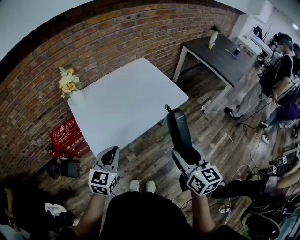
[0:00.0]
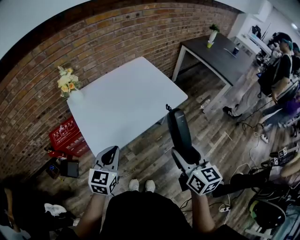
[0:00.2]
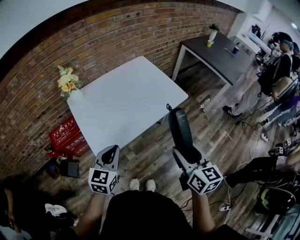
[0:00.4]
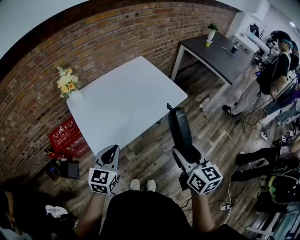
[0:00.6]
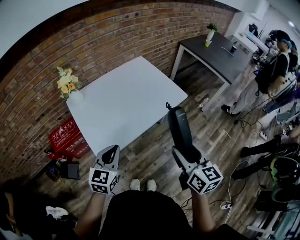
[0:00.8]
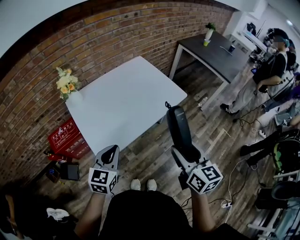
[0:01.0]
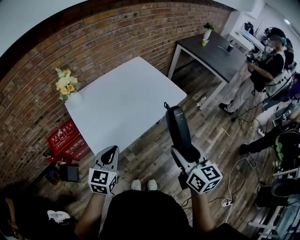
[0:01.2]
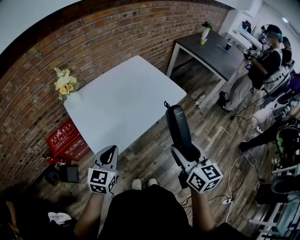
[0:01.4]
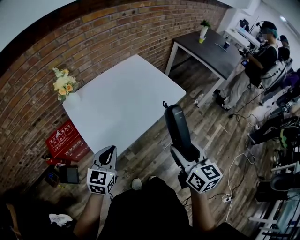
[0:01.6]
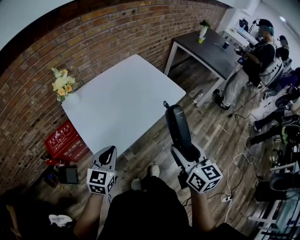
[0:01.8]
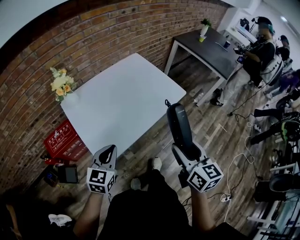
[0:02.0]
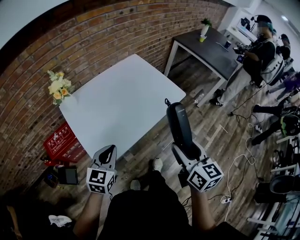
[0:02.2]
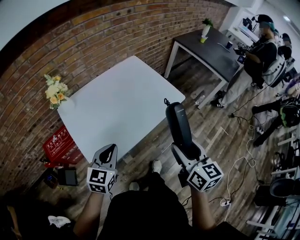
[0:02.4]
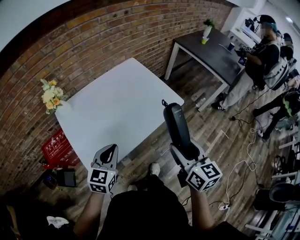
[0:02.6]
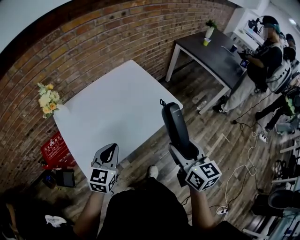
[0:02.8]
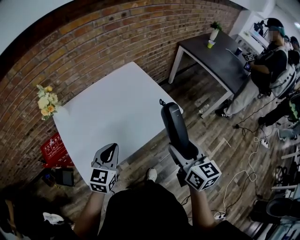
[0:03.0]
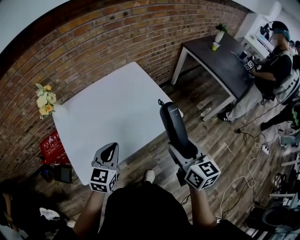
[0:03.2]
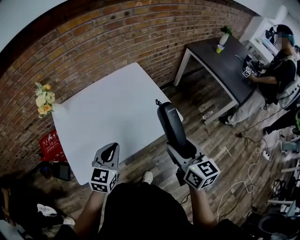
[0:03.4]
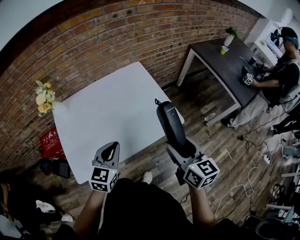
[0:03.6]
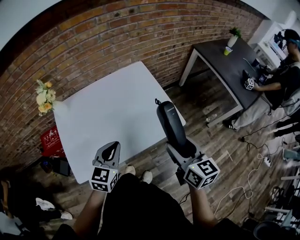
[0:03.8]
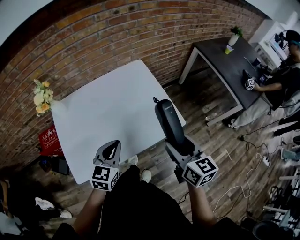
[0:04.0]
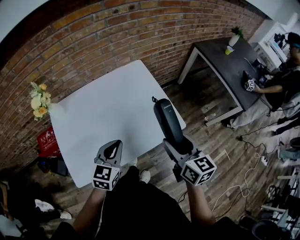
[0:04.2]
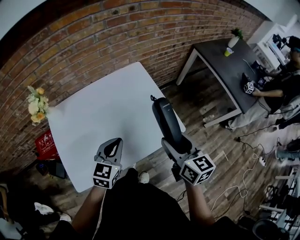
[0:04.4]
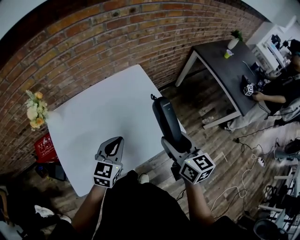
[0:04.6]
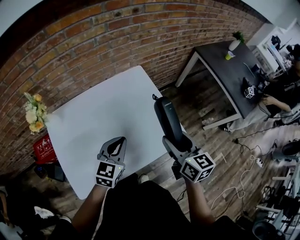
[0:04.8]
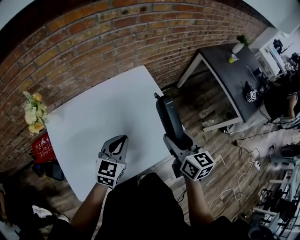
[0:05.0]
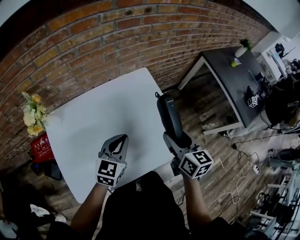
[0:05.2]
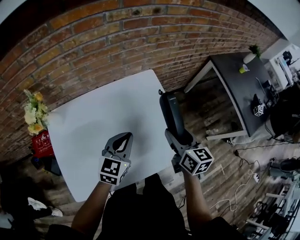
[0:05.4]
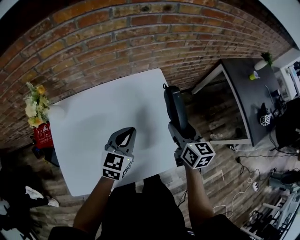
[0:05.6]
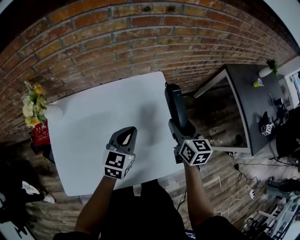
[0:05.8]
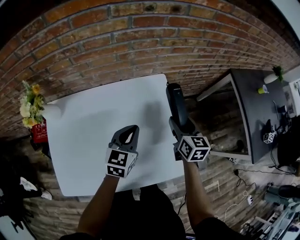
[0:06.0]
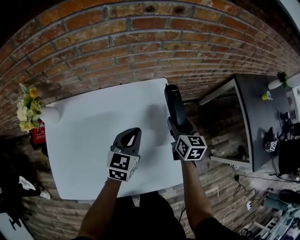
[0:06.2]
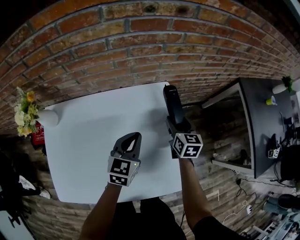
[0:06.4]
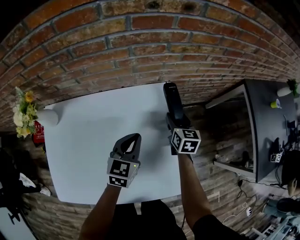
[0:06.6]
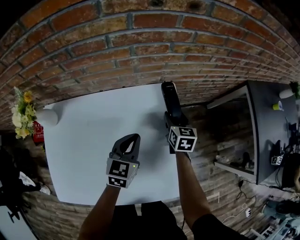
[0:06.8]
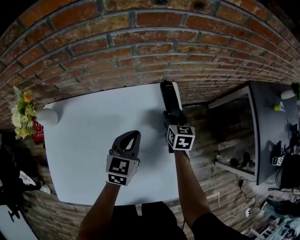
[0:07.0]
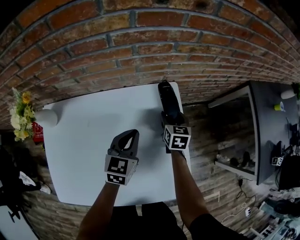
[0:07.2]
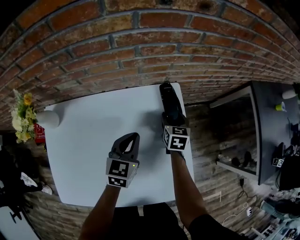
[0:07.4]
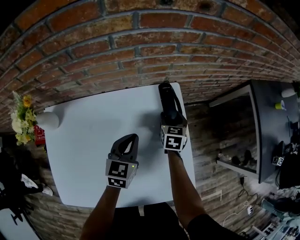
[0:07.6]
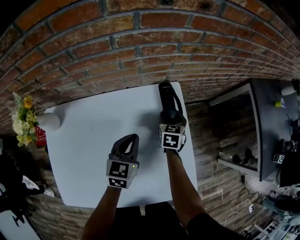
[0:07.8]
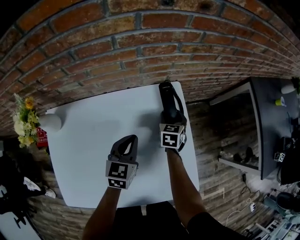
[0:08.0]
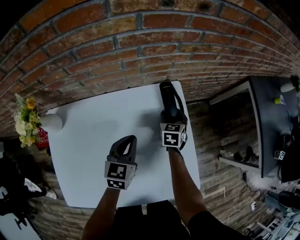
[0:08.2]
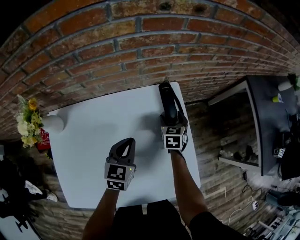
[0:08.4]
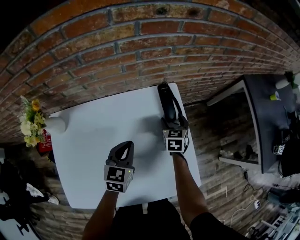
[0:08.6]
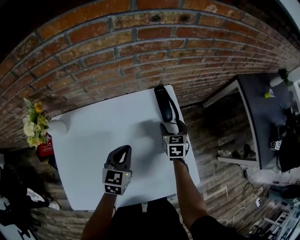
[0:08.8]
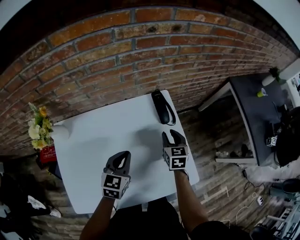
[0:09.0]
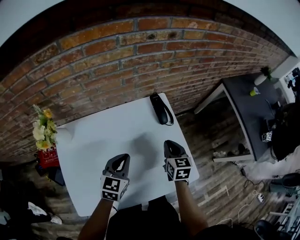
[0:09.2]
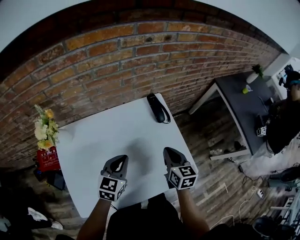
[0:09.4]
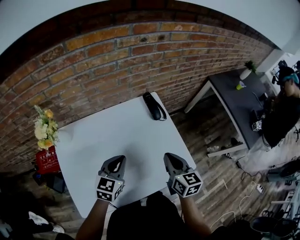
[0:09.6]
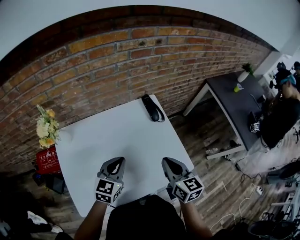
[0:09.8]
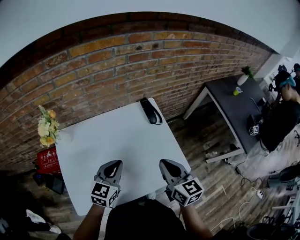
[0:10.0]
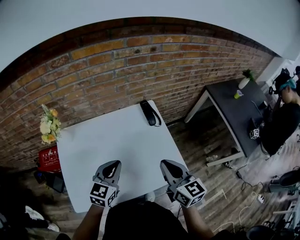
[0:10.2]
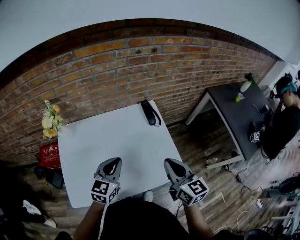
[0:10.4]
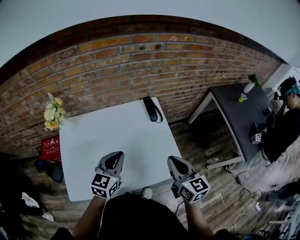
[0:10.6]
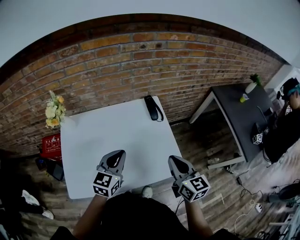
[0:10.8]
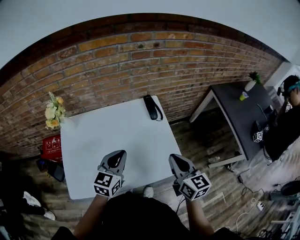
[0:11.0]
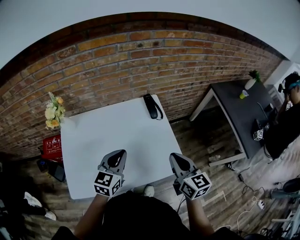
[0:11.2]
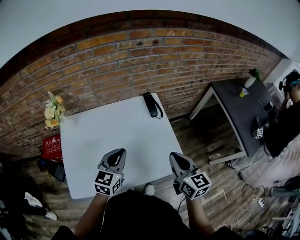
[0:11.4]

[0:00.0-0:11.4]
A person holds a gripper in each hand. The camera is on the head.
0:00.0 to 0:01.4: The grippers make only small movements.
0:01.4 to 0:02.8: The grippers both shift forward and to the right by roughly 15 cm.
0:02.8 to 0:04.2: The right gripper travels forward by some 15 cm; the left gripper shifts roughly 15 cm forward and to the right.
0:04.2 to 0:05.6: The two grippers go about 20 cm forward.
0:05.6 to 0:07.2: The left gripper travels forward and downward by approximately 15 cm. The right gripper moves forward and downward, about 30 cm.
0:07.2 to 0:08.6: The left gripper travels backward by about 5 cm.
0:08.6 to 0:10.0: The left gripper goes roughly 20 cm backward and upward. Meanwhile the right gripper heads backward and upward, covering about 40 cm, turns by about 30 degrees, and closes.
0:10.0 to 0:11.4: The right gripper heads to the right, covering some 10 cm. Meanwhile the left gripper moves some 5 cm.

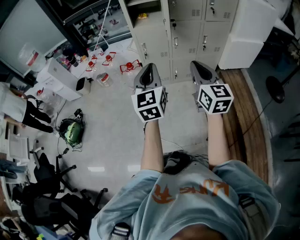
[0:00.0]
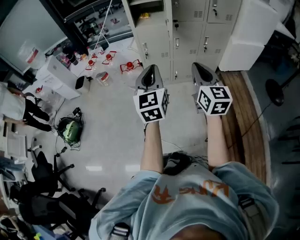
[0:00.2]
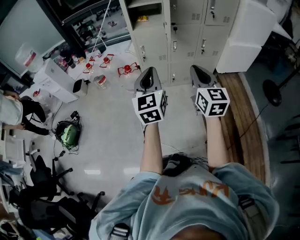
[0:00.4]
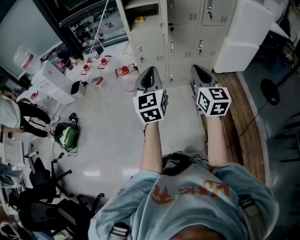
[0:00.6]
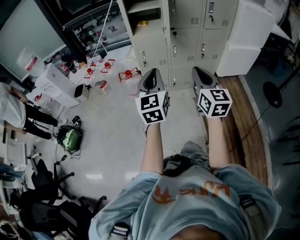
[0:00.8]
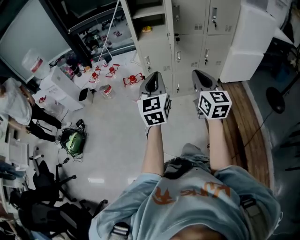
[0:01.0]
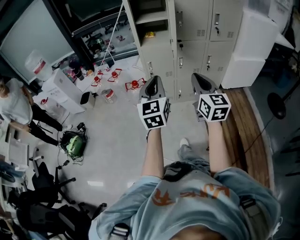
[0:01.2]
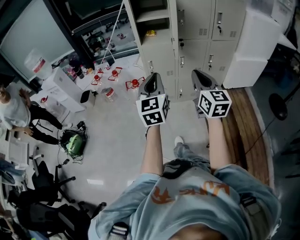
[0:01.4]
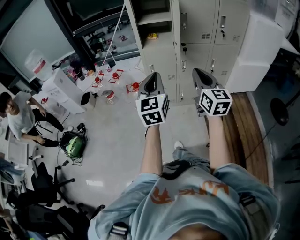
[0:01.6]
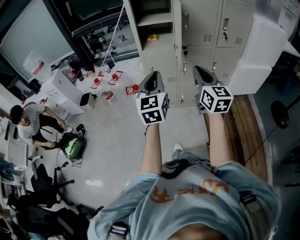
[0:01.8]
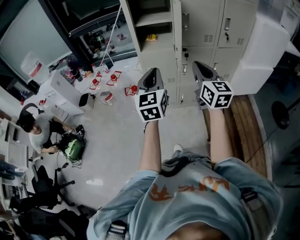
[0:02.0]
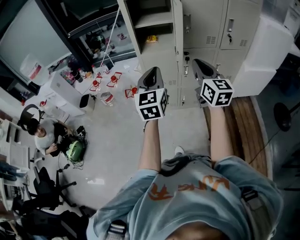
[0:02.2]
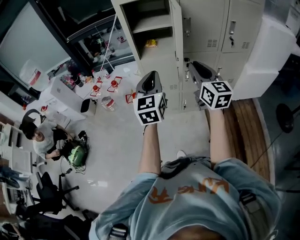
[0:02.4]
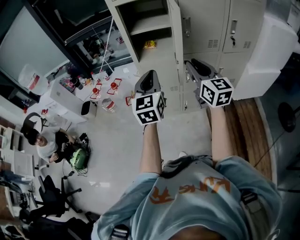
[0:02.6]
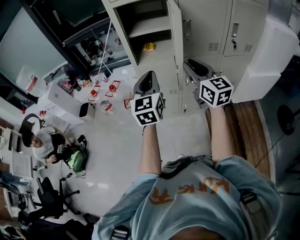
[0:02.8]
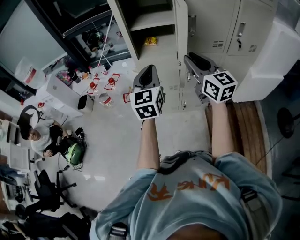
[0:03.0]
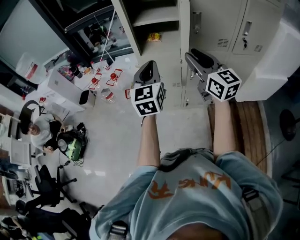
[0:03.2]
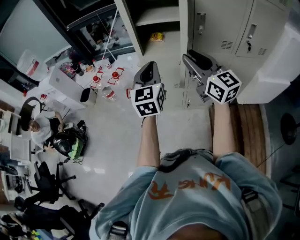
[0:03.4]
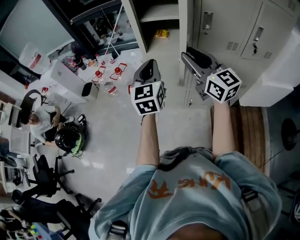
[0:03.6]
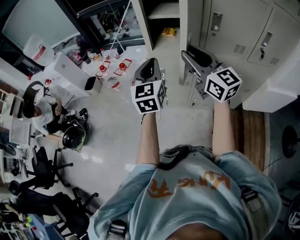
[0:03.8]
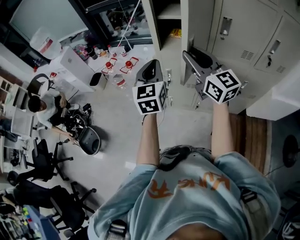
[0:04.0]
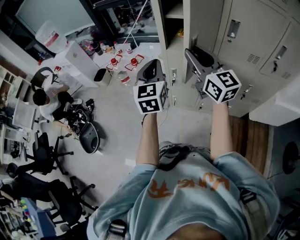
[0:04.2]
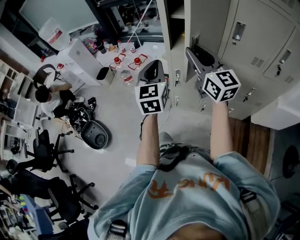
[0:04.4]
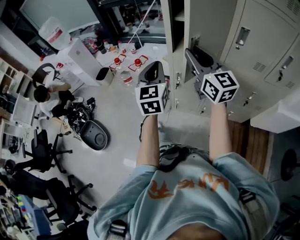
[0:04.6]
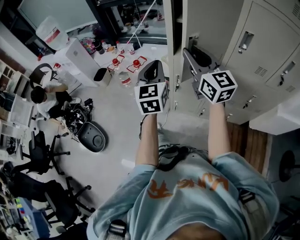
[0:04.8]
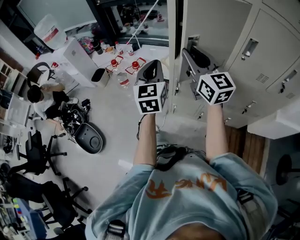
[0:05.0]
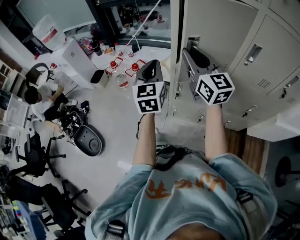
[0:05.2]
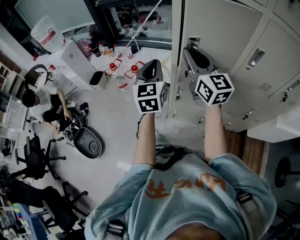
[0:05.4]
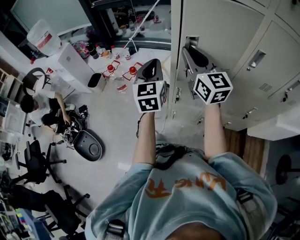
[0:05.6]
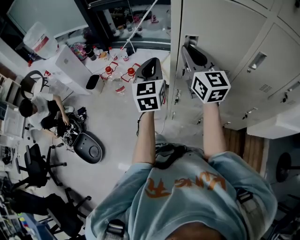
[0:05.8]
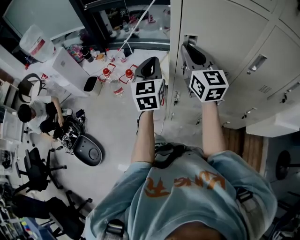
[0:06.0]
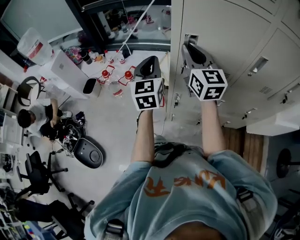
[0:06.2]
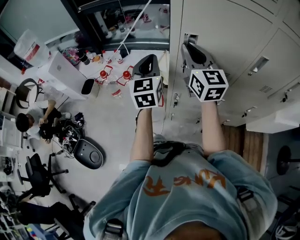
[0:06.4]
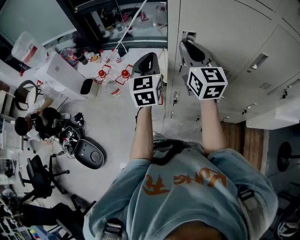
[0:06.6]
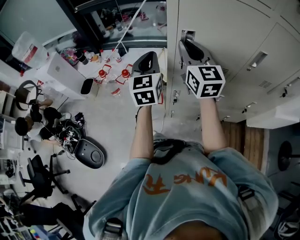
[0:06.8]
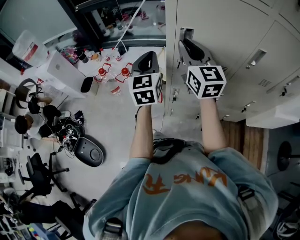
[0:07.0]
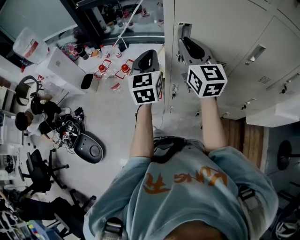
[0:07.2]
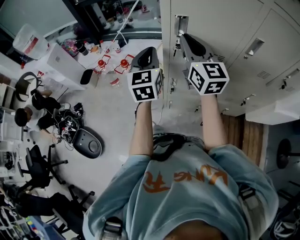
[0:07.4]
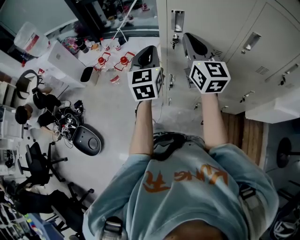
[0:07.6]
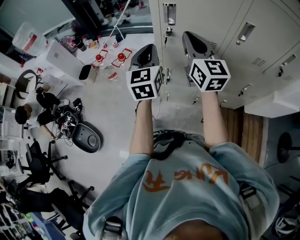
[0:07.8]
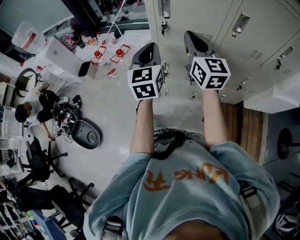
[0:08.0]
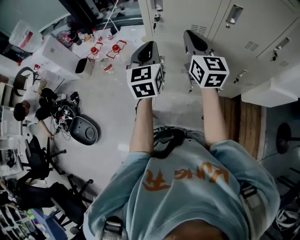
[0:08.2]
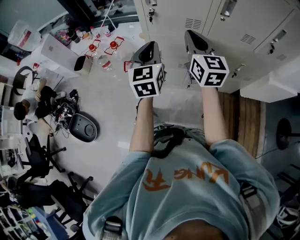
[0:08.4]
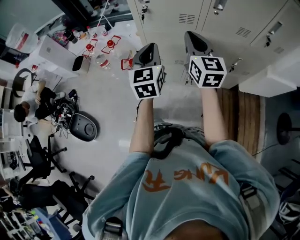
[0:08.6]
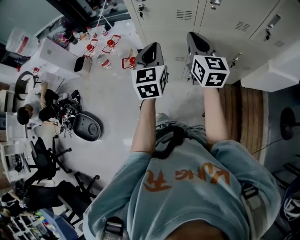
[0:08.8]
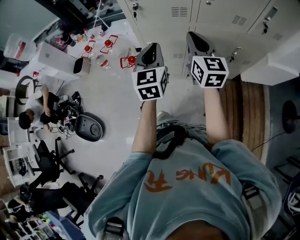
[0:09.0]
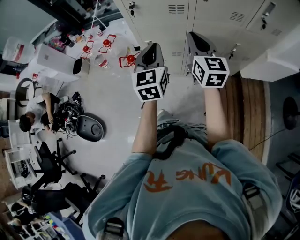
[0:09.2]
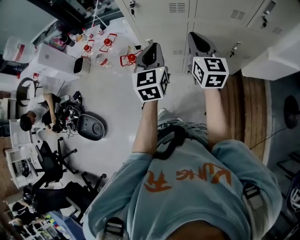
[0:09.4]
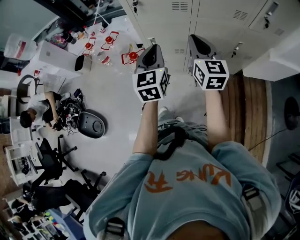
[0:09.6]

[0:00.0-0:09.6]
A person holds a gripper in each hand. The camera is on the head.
0:00.0 to 0:01.6: The grippers both shift forward by about 10 cm.
0:01.6 to 0:03.2: The grippers both shift forward by about 25 cm. The right gripper opens.
0:03.2 to 0:04.8: The left gripper is displaced to the left and forward by some 15 cm; the right gripper shifts about 20 cm forward and to the left.
0:04.8 to 0:06.4: The grippers both shift forward by about 20 cm.
0:06.4 to 0:08.0: Both grippers travel together backward and to the right, approximately 15 cm.
0:08.0 to 0:09.6: The grippers both shift backward, to the right and downward by some 15 cm.

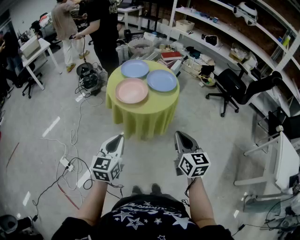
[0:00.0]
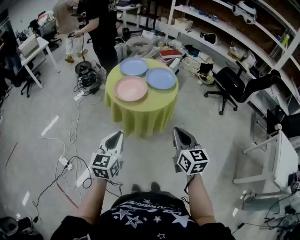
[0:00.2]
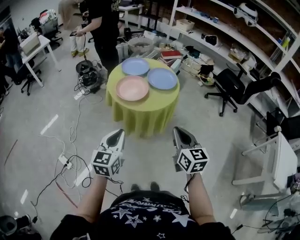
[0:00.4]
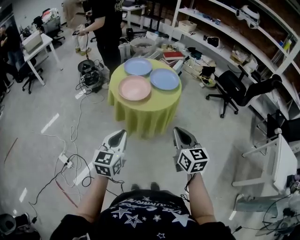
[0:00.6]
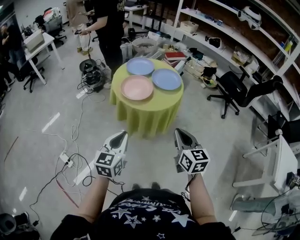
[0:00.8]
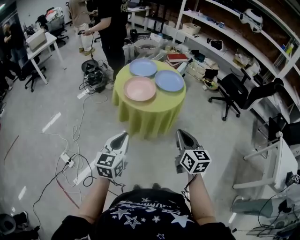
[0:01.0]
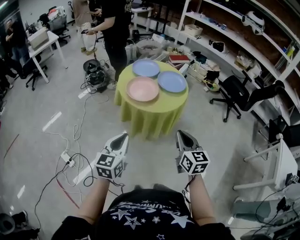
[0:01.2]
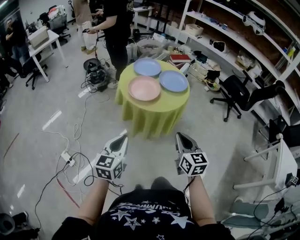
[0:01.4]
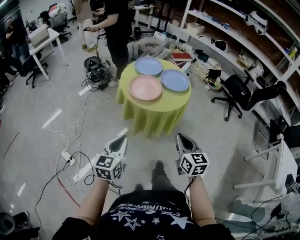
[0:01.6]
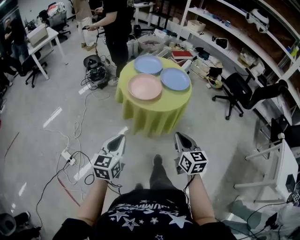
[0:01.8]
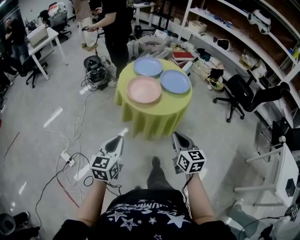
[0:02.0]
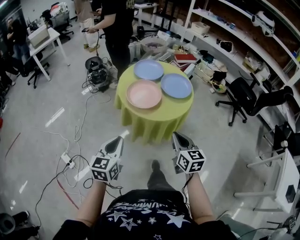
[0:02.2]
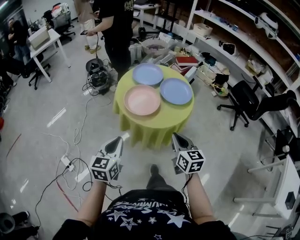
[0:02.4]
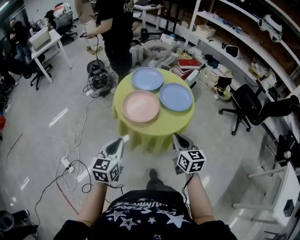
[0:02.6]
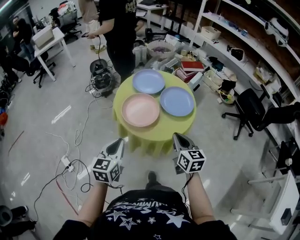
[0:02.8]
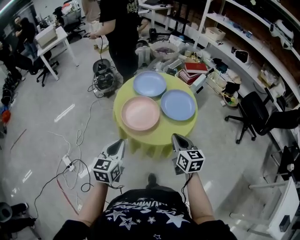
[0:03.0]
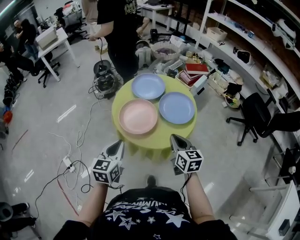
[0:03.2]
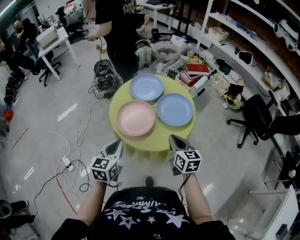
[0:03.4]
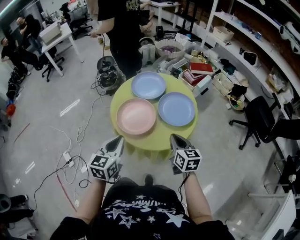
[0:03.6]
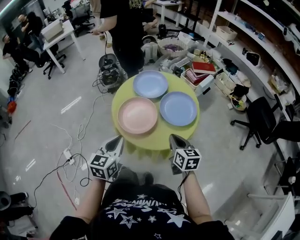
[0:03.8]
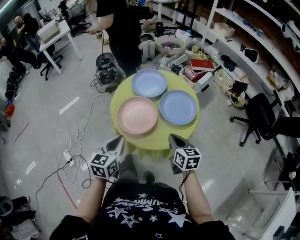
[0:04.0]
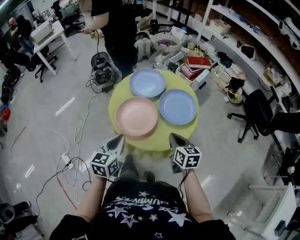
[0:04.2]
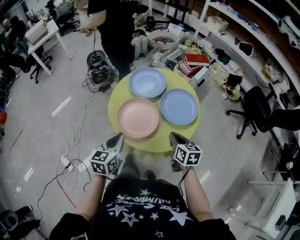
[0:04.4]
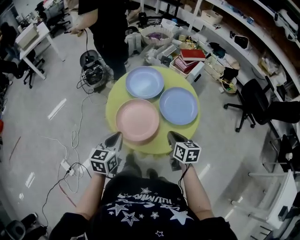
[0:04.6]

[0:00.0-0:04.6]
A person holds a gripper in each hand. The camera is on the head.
0:00.0 to 0:01.6: The two grippers go roughly 5 cm to the left.
0:01.6 to 0:03.0: The two grippers go some 25 cm forward.
0:03.0 to 0:04.6: Both grippers move forward and downward, about 15 cm.
